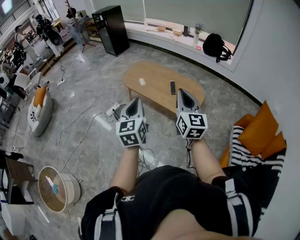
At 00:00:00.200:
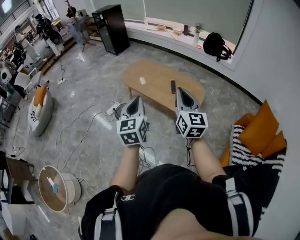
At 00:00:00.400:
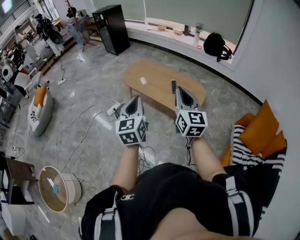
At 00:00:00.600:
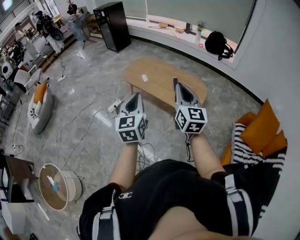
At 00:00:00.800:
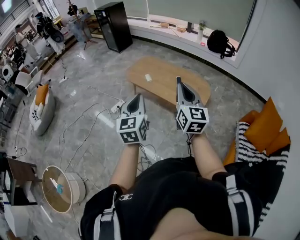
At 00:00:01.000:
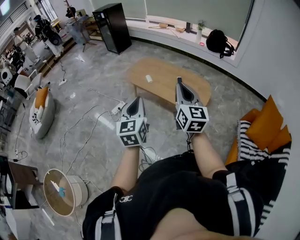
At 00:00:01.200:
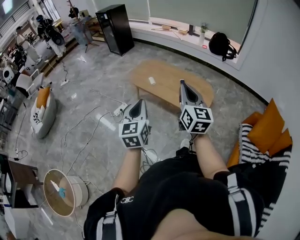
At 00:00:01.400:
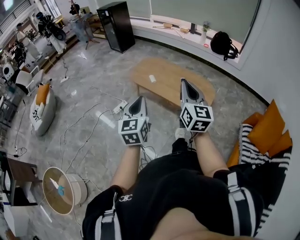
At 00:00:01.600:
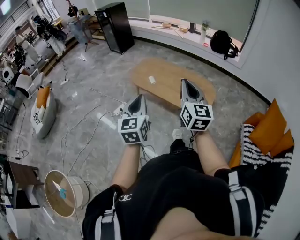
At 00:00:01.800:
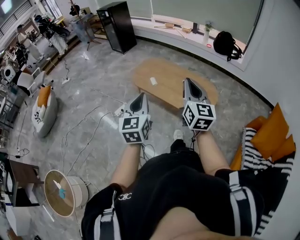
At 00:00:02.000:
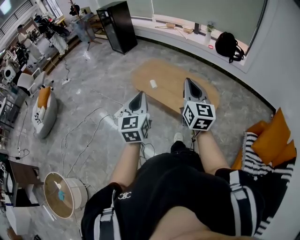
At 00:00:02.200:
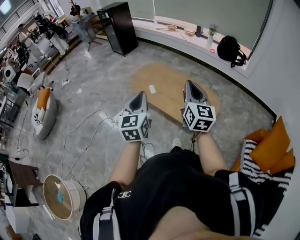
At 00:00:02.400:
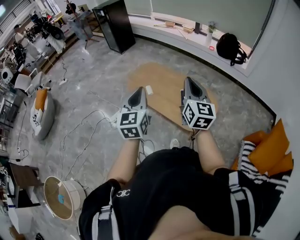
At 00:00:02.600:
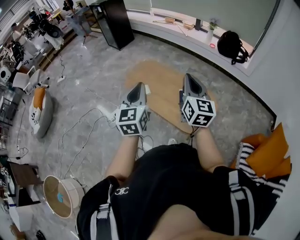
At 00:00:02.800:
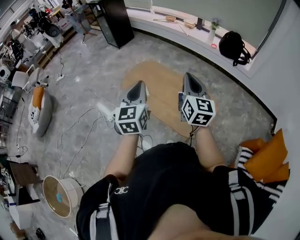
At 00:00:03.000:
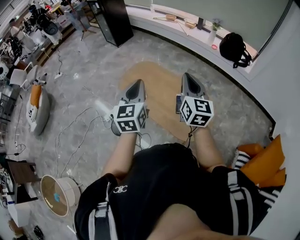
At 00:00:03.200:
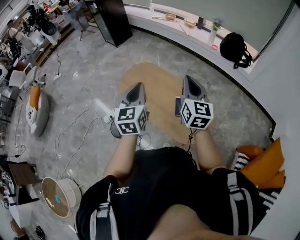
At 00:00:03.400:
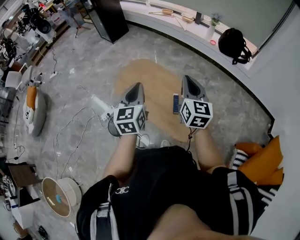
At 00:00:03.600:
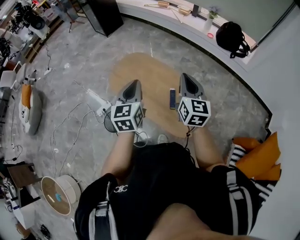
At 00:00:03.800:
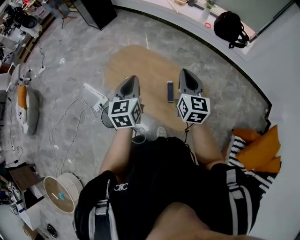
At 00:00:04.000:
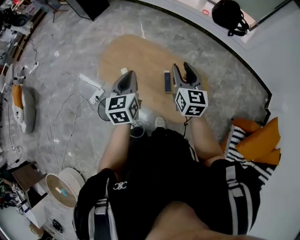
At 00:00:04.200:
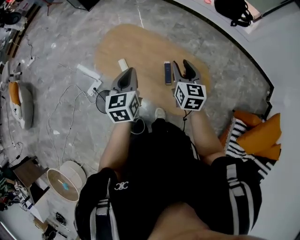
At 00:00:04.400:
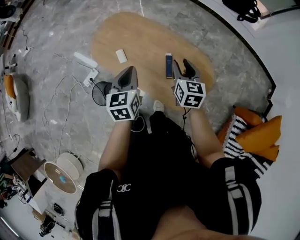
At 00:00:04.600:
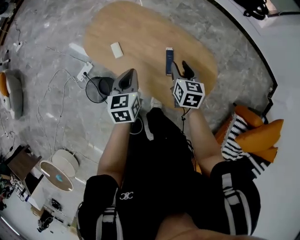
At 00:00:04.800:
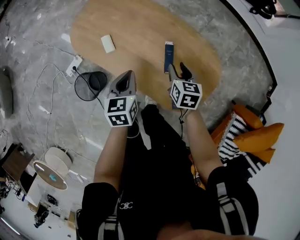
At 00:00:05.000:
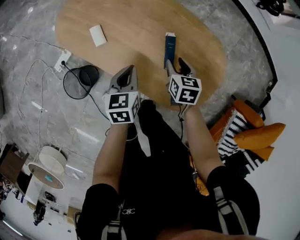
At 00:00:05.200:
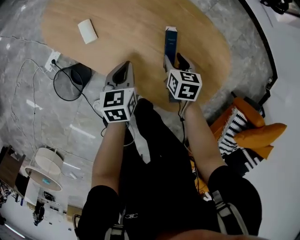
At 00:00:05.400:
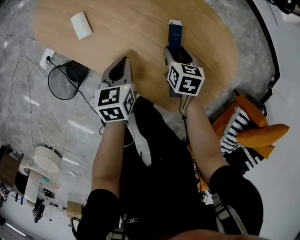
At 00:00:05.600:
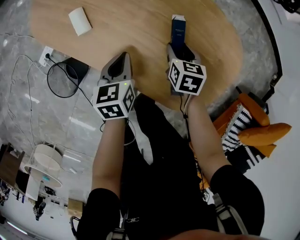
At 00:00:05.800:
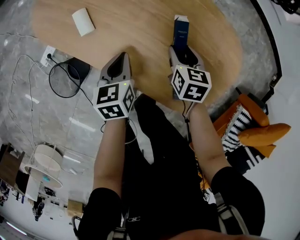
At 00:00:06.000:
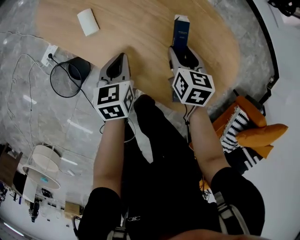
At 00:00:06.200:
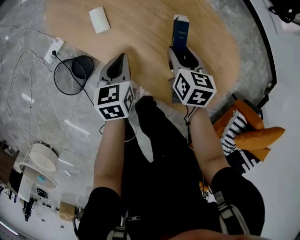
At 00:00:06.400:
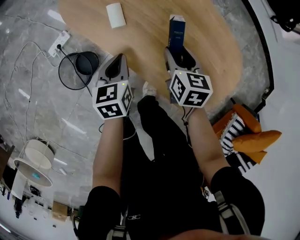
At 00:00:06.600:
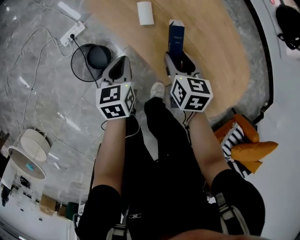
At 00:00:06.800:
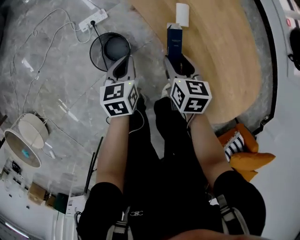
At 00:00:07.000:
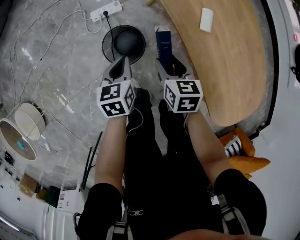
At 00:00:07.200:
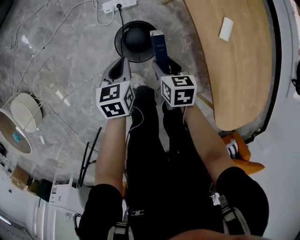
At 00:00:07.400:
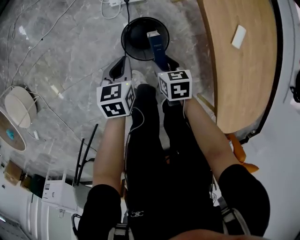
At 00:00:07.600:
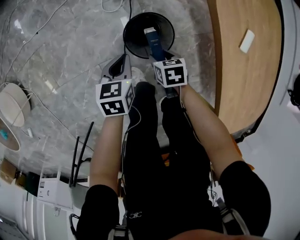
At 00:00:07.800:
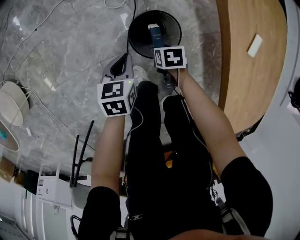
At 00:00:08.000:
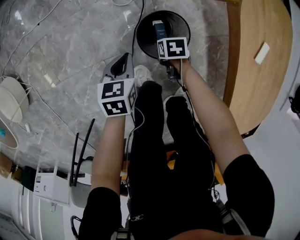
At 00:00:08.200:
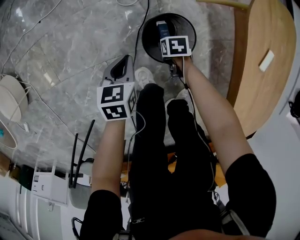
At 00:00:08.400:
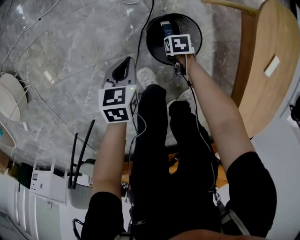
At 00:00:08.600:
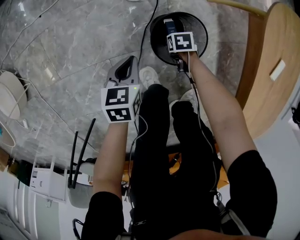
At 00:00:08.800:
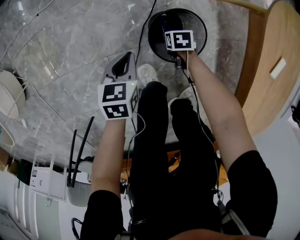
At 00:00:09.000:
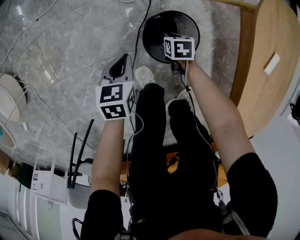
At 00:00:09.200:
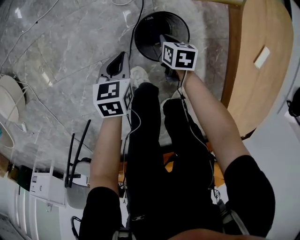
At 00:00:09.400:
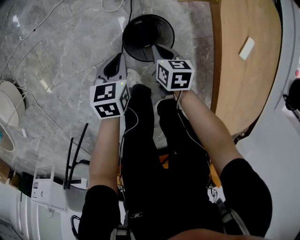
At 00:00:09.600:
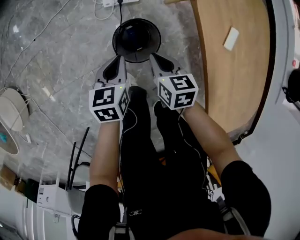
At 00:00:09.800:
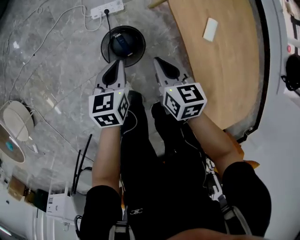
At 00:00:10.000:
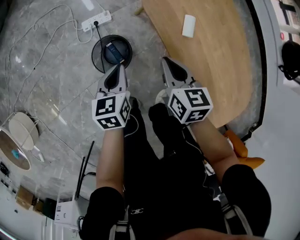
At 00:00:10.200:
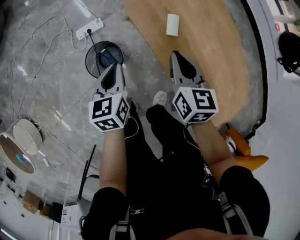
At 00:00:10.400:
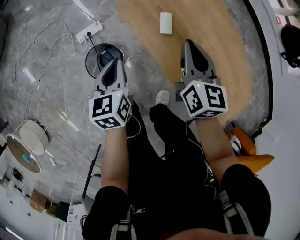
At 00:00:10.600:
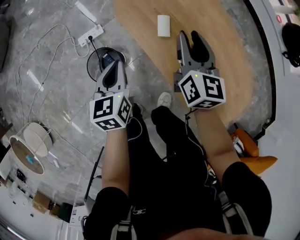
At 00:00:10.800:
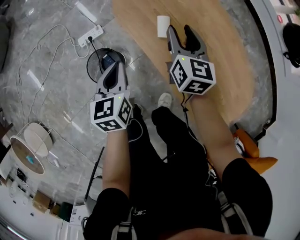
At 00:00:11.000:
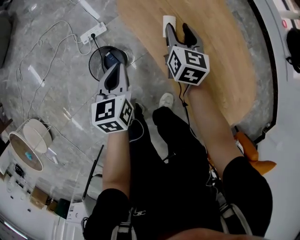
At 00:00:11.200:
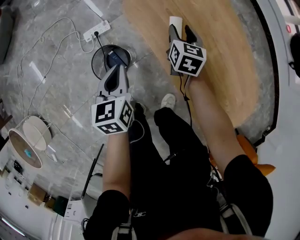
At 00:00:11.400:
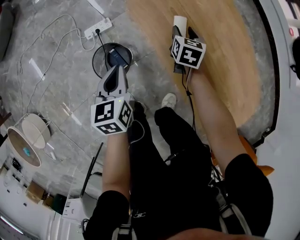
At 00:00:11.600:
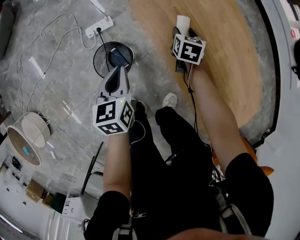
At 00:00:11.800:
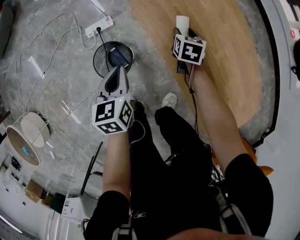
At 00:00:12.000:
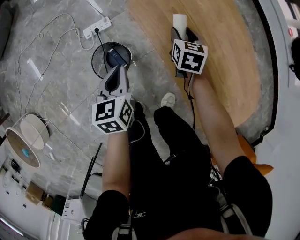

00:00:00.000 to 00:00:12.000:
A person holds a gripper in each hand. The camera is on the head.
00:00:00.000 to 00:00:01.600: Both grippers move to the left, approximately 10 cm.
00:00:01.600 to 00:00:03.000: Both grippers travel together forward, some 40 cm.
00:00:03.000 to 00:00:04.400: The two grippers go approximately 30 cm downward and forward. The left gripper rotates roughly 20 degrees. The right gripper turns by about 30 degrees, and opens up.
00:00:04.400 to 00:00:06.000: Both grippers travel together downward, about 35 cm.
00:00:06.000 to 00:00:07.600: The two grippers travel together, roughly 60 cm. The right gripper rotates some 60 degrees. The left gripper swivels approximately 30 degrees.
00:00:07.600 to 00:00:09.000: The right gripper goes about 15 cm downward, and closes its fingers, while the left gripper shifts roughly 5 cm downward.
00:00:09.000 to 00:00:10.400: The left gripper moves approximately 40 cm, and turns by approximately 20 degrees, while the right gripper shifts approximately 50 cm upward, and tips its fingers upward by roughly 50 degrees.
00:00:10.400 to 00:00:12.000: The left gripper moves some 5 cm. The right gripper travels downward and forward by some 20 cm, swivels approximately 20 degrees, and opens.

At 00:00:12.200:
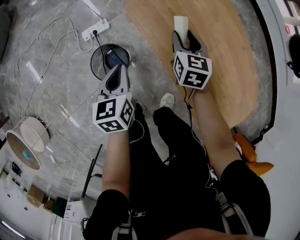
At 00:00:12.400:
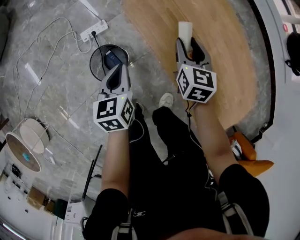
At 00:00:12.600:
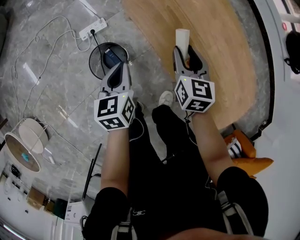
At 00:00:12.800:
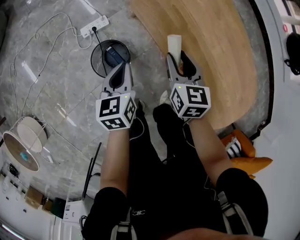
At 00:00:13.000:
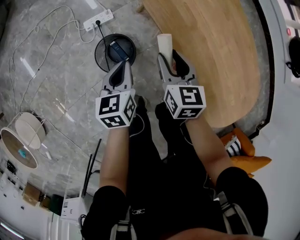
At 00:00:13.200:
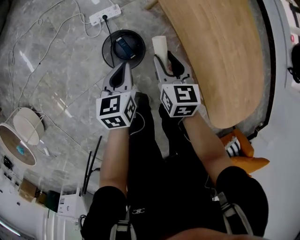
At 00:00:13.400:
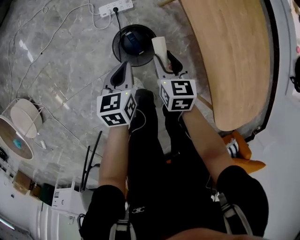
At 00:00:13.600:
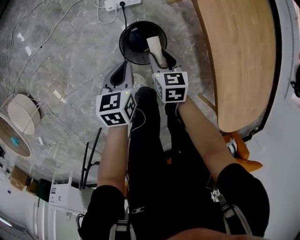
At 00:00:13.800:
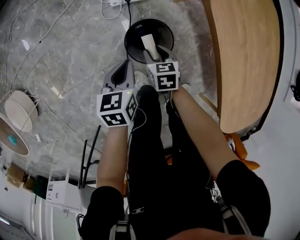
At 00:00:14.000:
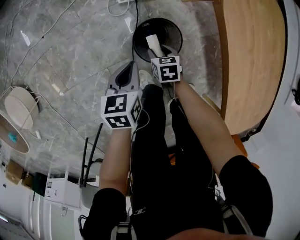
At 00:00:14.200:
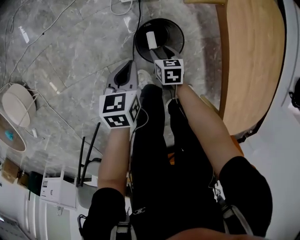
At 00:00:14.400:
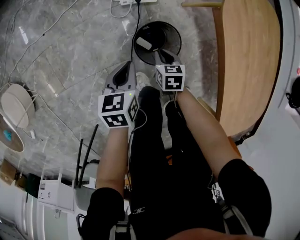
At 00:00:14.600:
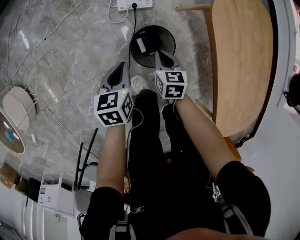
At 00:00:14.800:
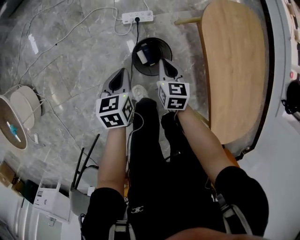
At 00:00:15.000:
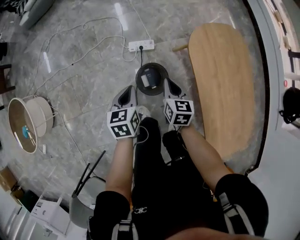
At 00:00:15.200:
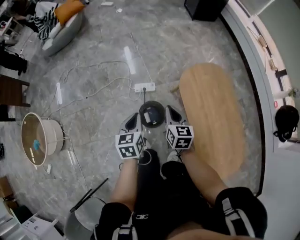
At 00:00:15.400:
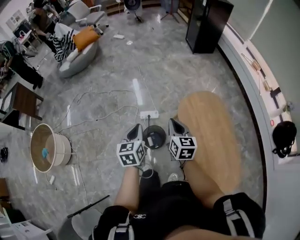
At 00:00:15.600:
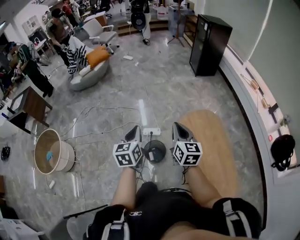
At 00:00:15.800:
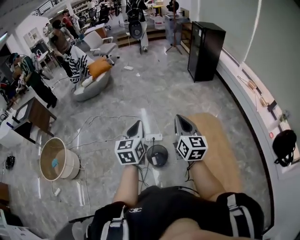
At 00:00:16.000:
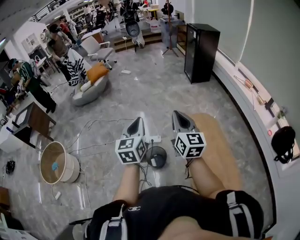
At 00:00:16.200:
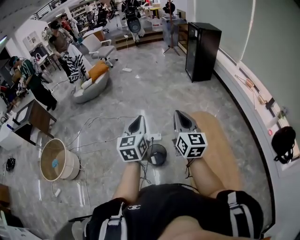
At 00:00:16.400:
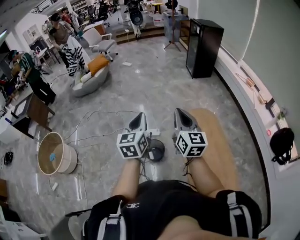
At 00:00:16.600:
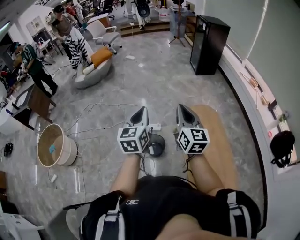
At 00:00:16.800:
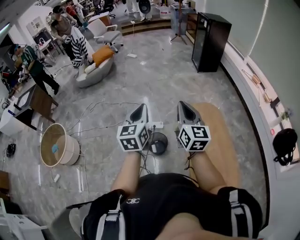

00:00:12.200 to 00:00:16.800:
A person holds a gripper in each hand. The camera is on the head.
00:00:12.200 to 00:00:13.800: The right gripper shifts roughly 40 cm to the left and downward, and turns by roughly 30 degrees. Meanwhile the left gripper is displaced to the left and downward by some 25 cm.
00:00:13.800 to 00:00:15.200: Both grippers move upward, approximately 40 cm. The left gripper changes its angle by roughly 20 degrees. Meanwhile the right gripper rotates approximately 30 degrees, and closes up.
00:00:15.200 to 00:00:16.800: Both grippers move upward, about 35 cm. The right gripper angles its fingers upward, by some 30 degrees, while the left gripper turns by approximately 30 degrees.

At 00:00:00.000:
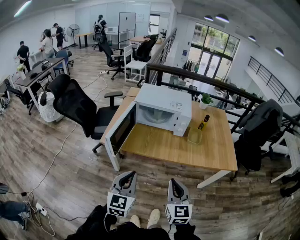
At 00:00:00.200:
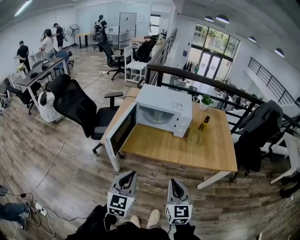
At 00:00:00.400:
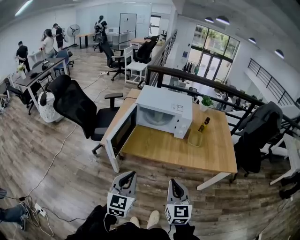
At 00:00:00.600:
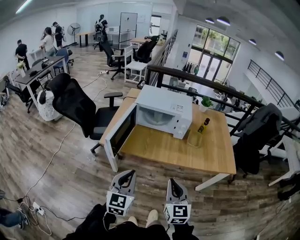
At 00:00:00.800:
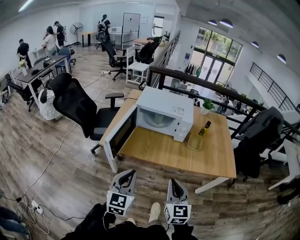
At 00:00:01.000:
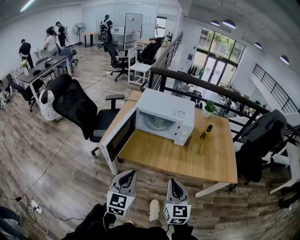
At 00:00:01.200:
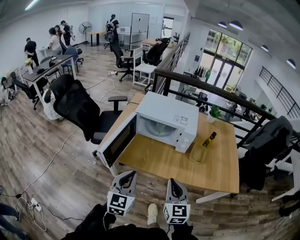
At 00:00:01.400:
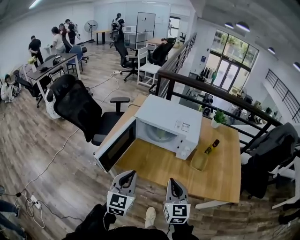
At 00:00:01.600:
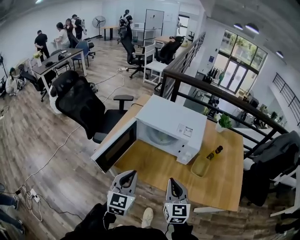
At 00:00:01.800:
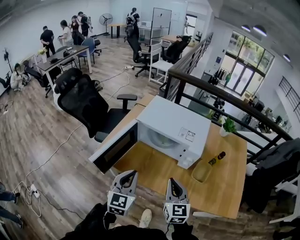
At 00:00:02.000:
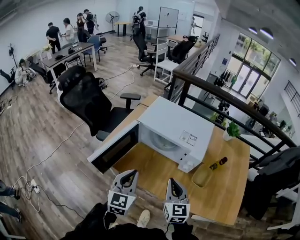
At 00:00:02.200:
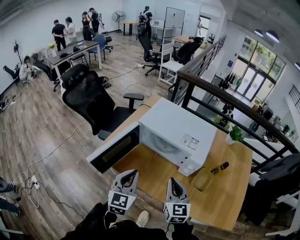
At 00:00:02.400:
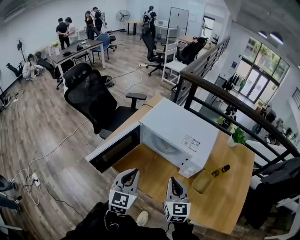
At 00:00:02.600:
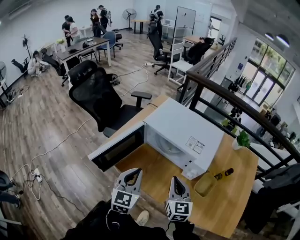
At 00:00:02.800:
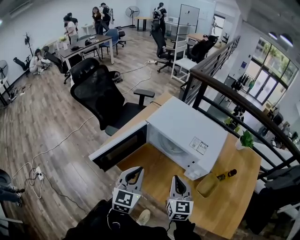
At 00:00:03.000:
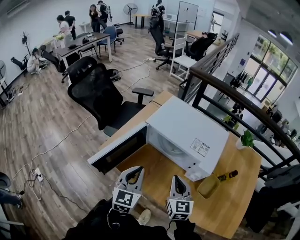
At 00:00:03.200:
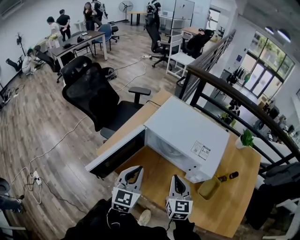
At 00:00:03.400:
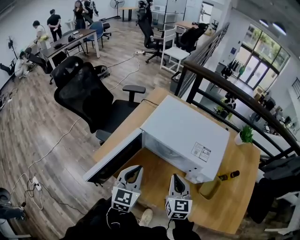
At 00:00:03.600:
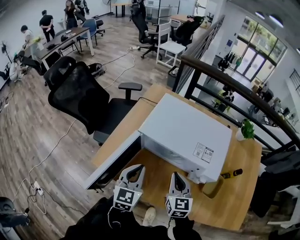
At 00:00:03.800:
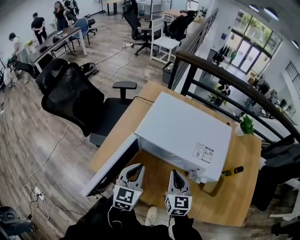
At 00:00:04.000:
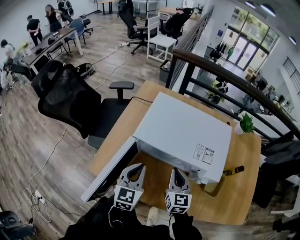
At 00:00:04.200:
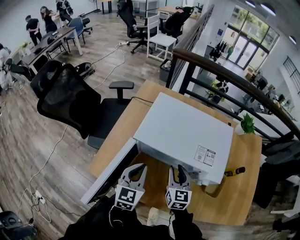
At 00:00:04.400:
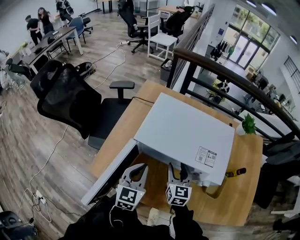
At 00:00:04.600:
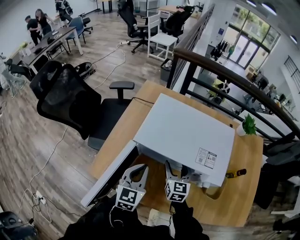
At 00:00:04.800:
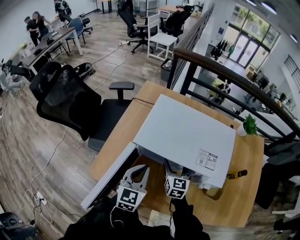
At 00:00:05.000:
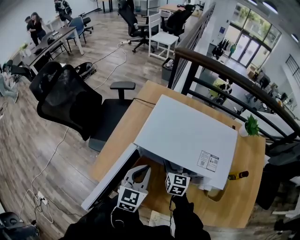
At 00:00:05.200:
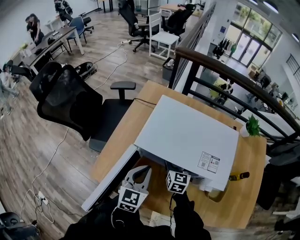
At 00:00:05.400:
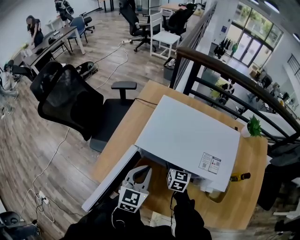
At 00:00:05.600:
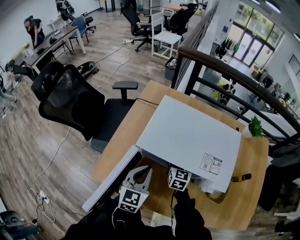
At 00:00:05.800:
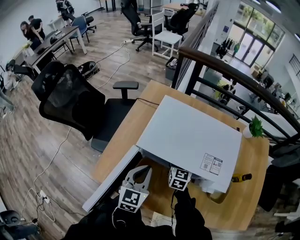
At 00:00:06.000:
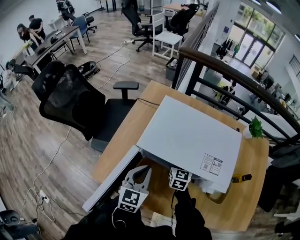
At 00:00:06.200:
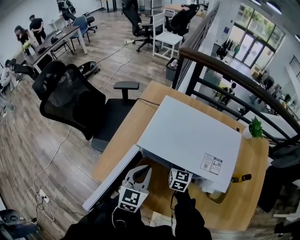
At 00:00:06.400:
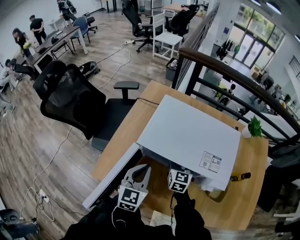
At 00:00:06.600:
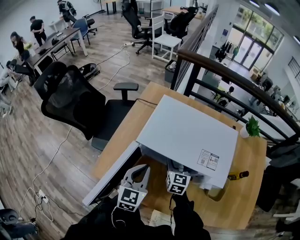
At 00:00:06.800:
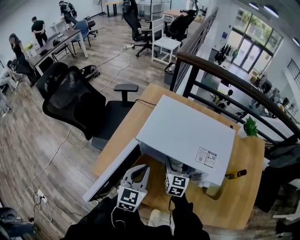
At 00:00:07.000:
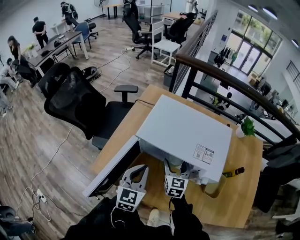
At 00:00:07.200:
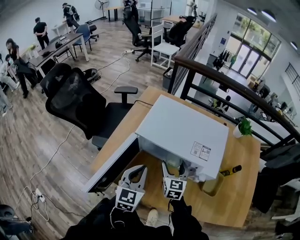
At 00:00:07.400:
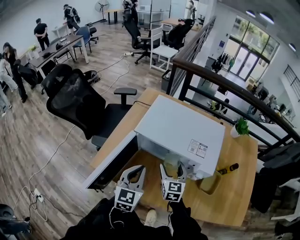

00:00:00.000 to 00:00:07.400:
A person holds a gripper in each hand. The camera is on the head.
00:00:00.000 to 00:00:01.400: Both grippers travel together forward, approximately 20 cm.
00:00:01.400 to 00:00:03.000: Both grippers travel together forward, approximately 20 cm.
00:00:03.000 to 00:00:04.400: The grippers both shift forward and downward by roughly 20 cm. The right gripper opens up.
00:00:04.400 to 00:00:06.000: The right gripper travels forward by approximately 10 cm.
00:00:06.000 to 00:00:07.400: The grippers both shift backward by approximately 15 cm.
